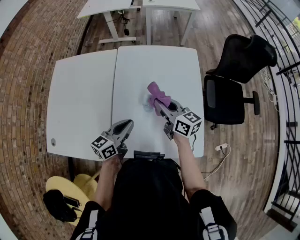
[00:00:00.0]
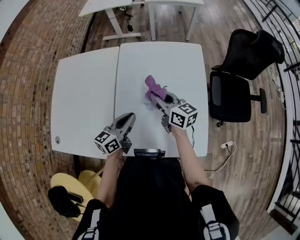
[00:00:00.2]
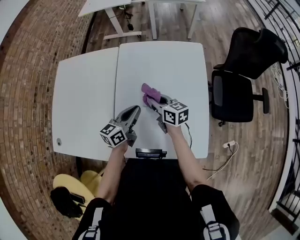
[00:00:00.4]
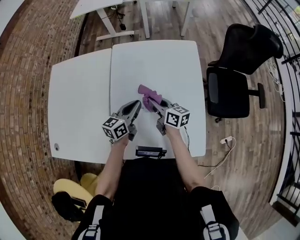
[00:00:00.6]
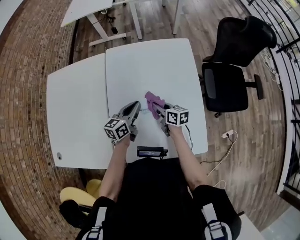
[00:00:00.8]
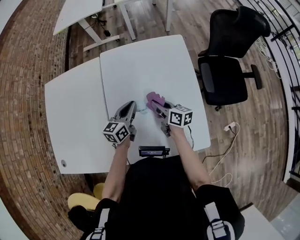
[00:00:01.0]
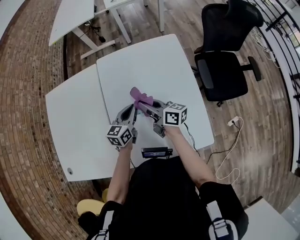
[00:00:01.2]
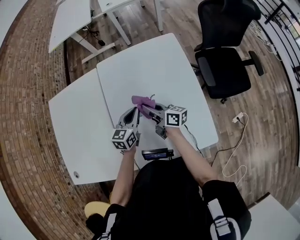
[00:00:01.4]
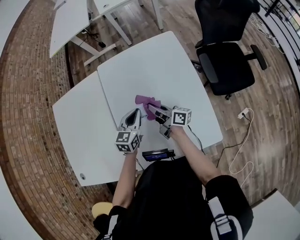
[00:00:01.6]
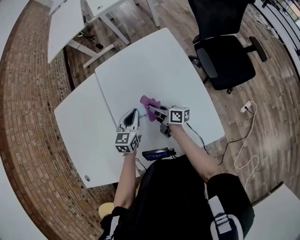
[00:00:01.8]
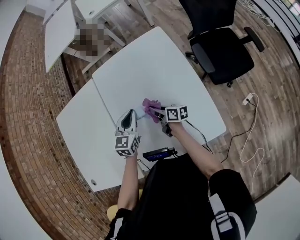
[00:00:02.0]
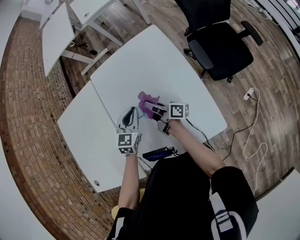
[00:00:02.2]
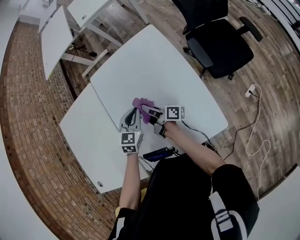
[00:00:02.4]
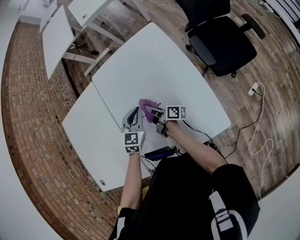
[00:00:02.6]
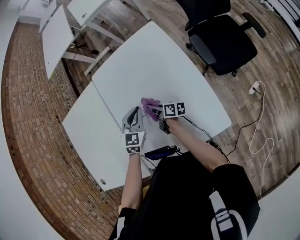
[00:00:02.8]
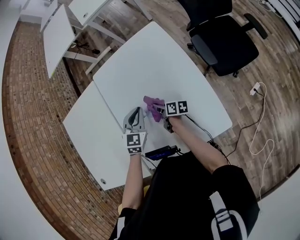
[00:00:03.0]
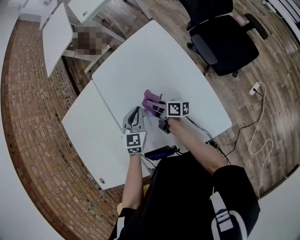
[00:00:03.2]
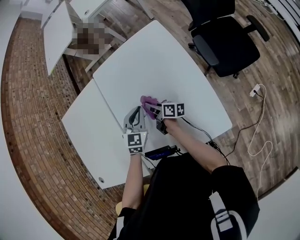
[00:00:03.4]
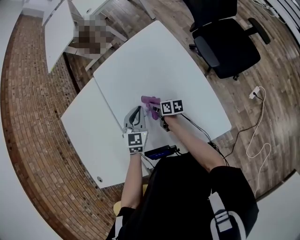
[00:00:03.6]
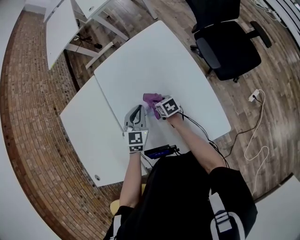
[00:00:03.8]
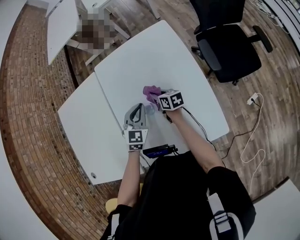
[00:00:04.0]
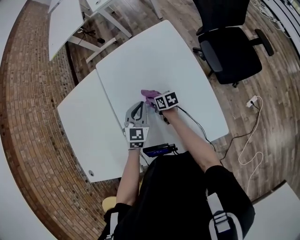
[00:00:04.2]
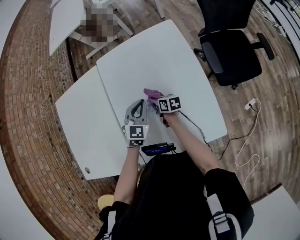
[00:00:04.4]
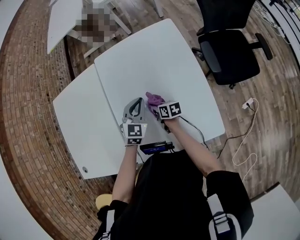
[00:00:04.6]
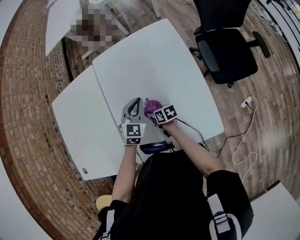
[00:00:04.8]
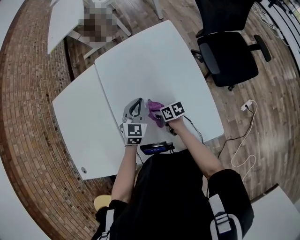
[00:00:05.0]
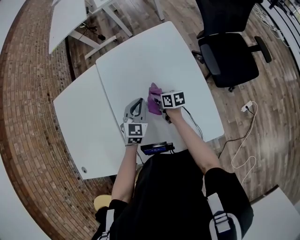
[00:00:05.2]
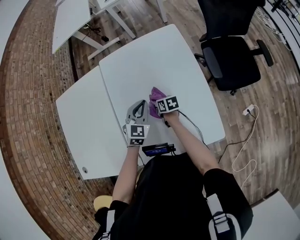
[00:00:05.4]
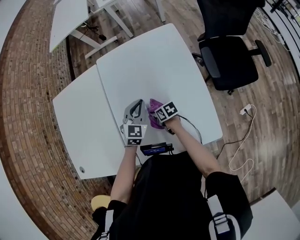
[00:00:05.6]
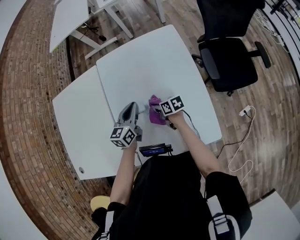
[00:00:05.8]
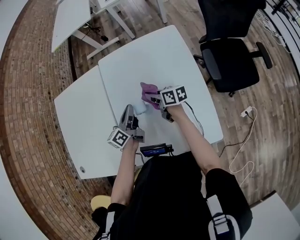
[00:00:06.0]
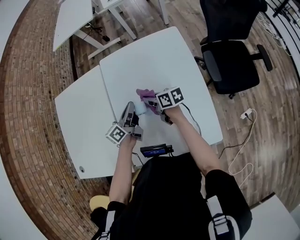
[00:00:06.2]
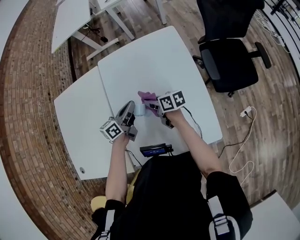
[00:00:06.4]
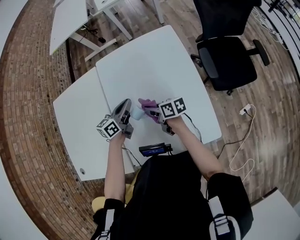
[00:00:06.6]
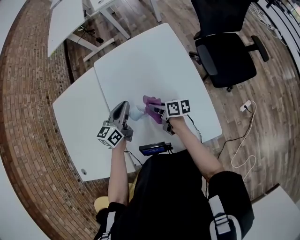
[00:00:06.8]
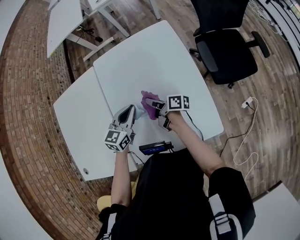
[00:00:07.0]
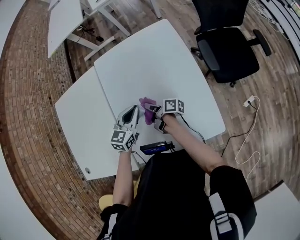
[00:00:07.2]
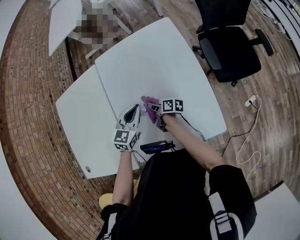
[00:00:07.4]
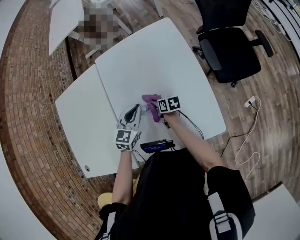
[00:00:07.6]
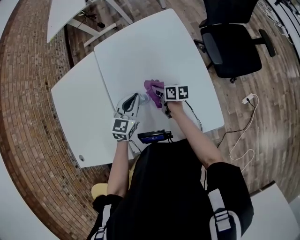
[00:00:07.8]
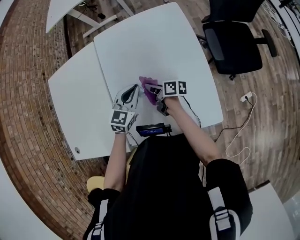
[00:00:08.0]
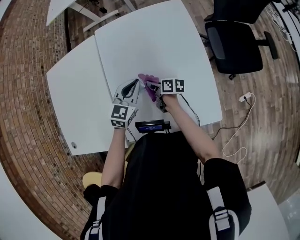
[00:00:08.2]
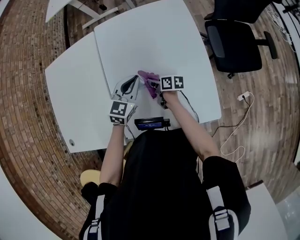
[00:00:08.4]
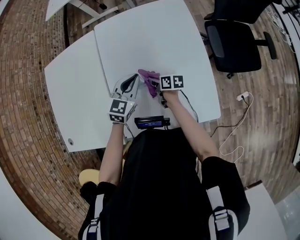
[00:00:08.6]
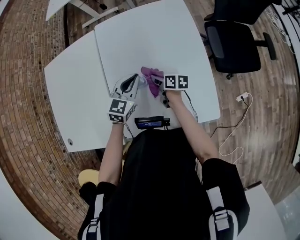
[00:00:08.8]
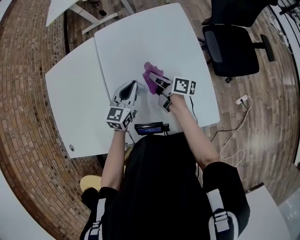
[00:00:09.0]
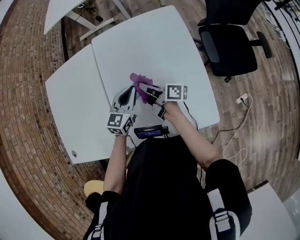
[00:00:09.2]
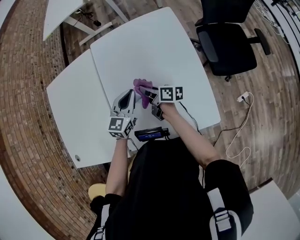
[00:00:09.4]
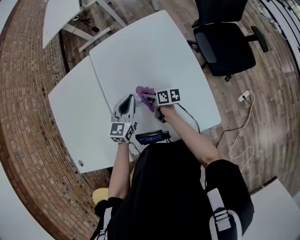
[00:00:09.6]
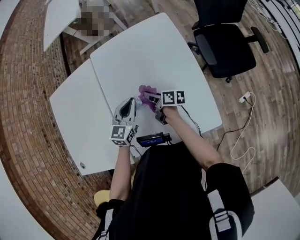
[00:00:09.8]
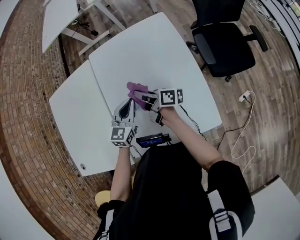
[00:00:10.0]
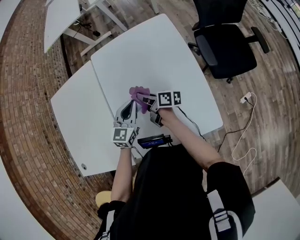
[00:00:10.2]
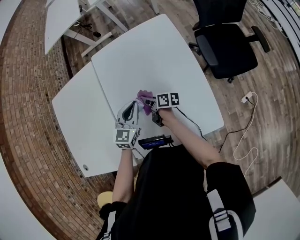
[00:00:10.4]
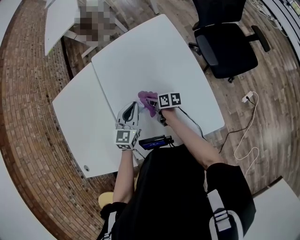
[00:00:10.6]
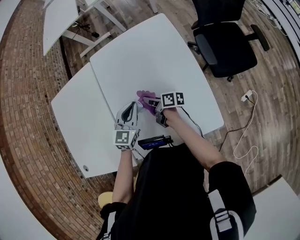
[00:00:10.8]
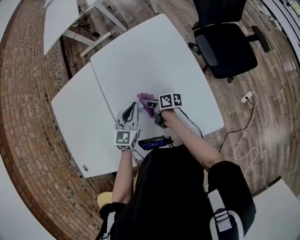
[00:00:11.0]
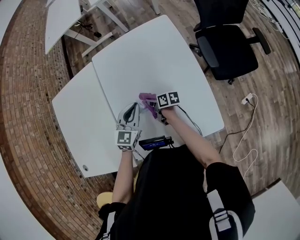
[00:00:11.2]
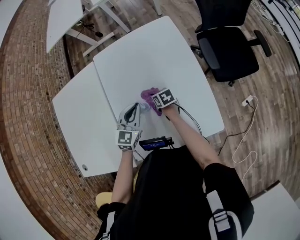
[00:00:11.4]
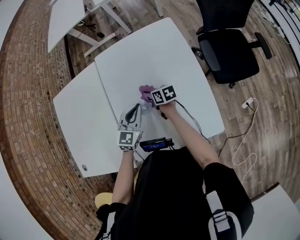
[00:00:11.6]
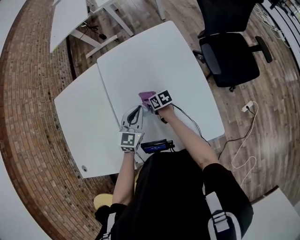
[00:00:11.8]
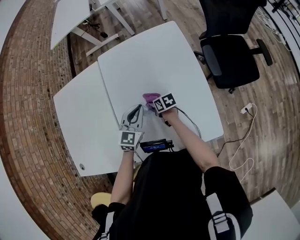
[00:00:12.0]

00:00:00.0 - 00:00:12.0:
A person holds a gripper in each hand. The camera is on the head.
00:00:00.0 - 00:00:01.6: The right gripper goes up and down, roughly 15 cm each way, reversing 2 times, and turns by roughly 40 degrees. Meanwhile the left gripper shifts about 15 cm forward, to the right and downward, and swivels some 30 degrees.
00:00:01.6 - 00:00:03.0: The right gripper goes up and down, about 15 cm each way, reversing 2 times, and swivels roughly 30 degrees; the left gripper turns by about 20 degrees.
00:00:03.0 - 00:00:04.4: The right gripper goes up and down, roughly 10 cm each way, reversing 2 times, and changes its angle by about 20 degrees.
00:00:04.4 - 00:00:06.0: The left gripper goes some 5 cm to the left, and twists some 70 degrees counterclockwise, seen from behind. The right gripper heads upward, covering roughly 10 cm.
00:00:06.0 - 00:00:07.6: The right gripper is displaced downward and backward by approximately 15 cm, and turns by approximately 20 degrees. Meanwhile the left gripper travels to the right by some 5 cm, and twists about 50 degrees clockwise, seen from behind.
00:00:07.6 - 00:00:09.0: The right gripper swings up and down, about 15 cm each way, with 2 reversals, and rotates roughly 40 degrees.
00:00:09.0 - 00:00:10.4: The right gripper goes up and down, about 10 cm each way, reversing 2 times.
00:00:10.4 - 00:00:12.0: The right gripper moves up and down over roughly 5 cm, changing direction 2 times, and turns by about 40 degrees.

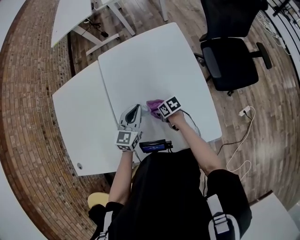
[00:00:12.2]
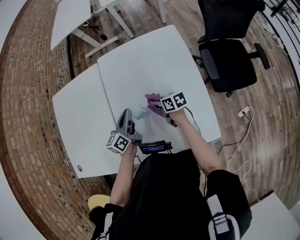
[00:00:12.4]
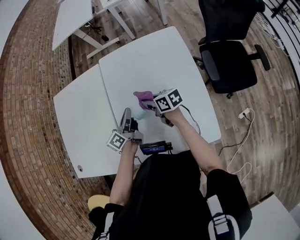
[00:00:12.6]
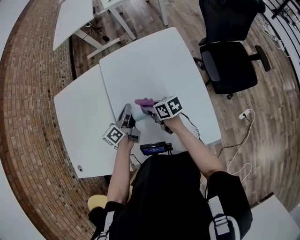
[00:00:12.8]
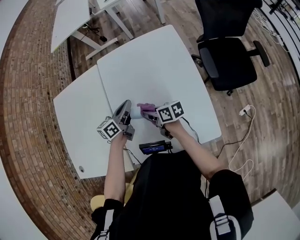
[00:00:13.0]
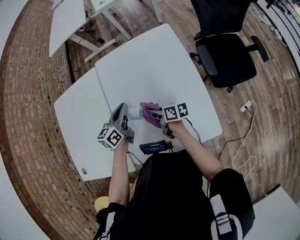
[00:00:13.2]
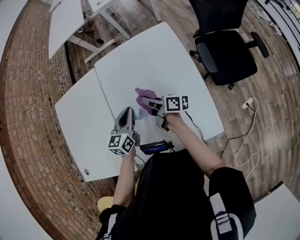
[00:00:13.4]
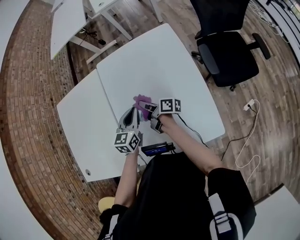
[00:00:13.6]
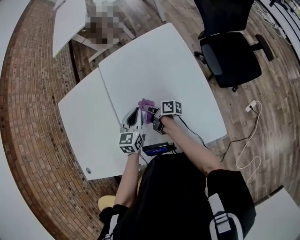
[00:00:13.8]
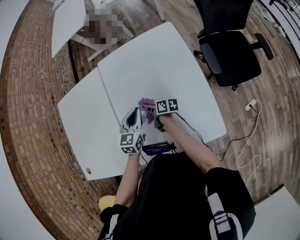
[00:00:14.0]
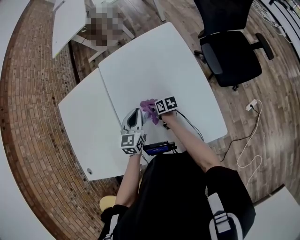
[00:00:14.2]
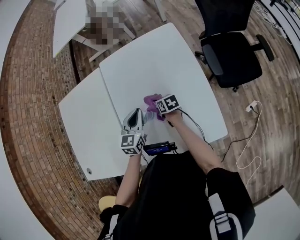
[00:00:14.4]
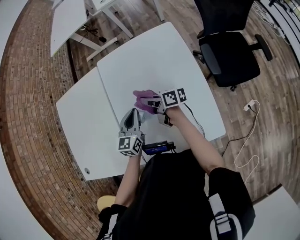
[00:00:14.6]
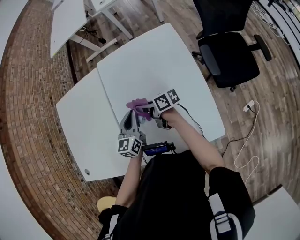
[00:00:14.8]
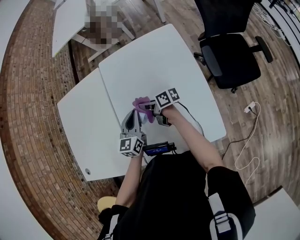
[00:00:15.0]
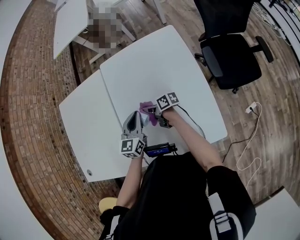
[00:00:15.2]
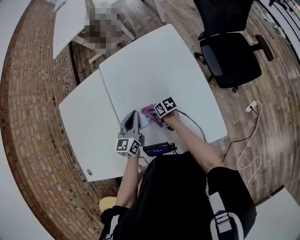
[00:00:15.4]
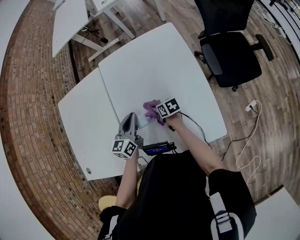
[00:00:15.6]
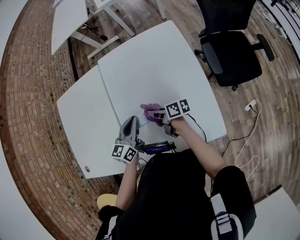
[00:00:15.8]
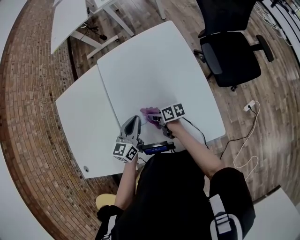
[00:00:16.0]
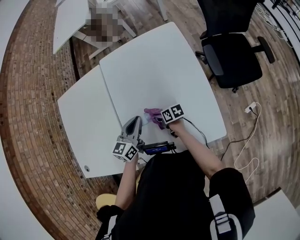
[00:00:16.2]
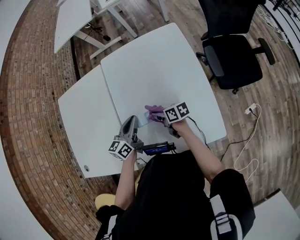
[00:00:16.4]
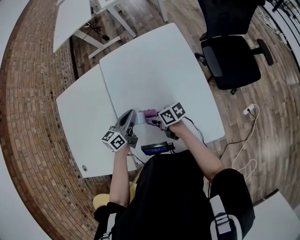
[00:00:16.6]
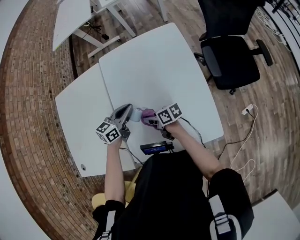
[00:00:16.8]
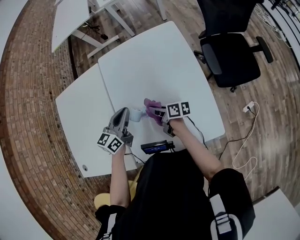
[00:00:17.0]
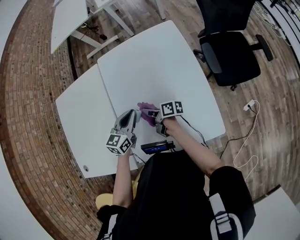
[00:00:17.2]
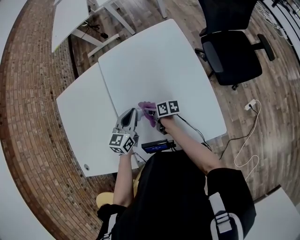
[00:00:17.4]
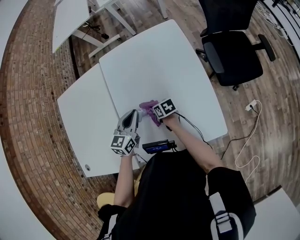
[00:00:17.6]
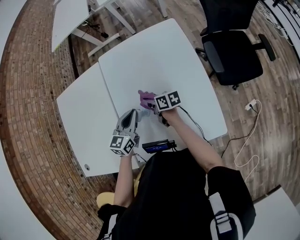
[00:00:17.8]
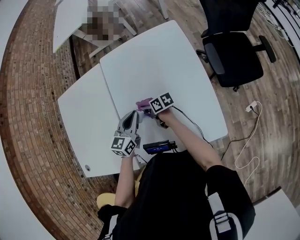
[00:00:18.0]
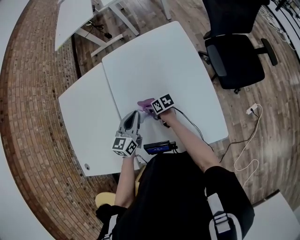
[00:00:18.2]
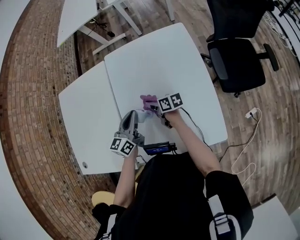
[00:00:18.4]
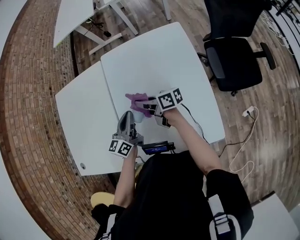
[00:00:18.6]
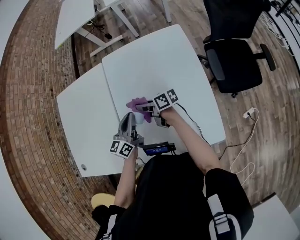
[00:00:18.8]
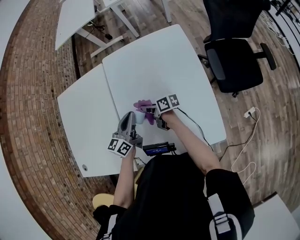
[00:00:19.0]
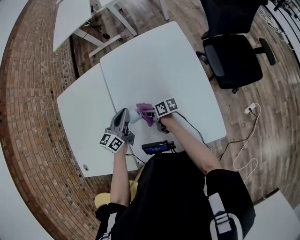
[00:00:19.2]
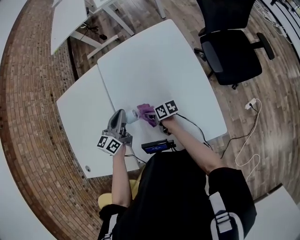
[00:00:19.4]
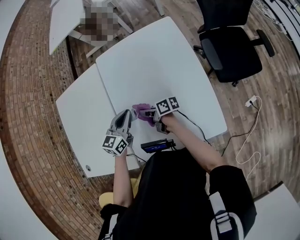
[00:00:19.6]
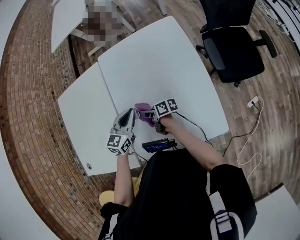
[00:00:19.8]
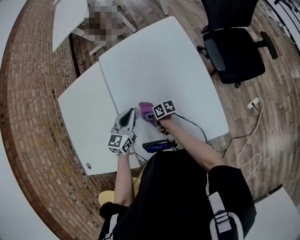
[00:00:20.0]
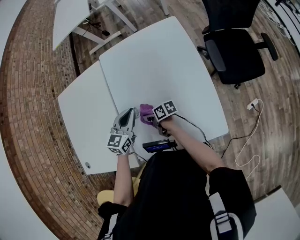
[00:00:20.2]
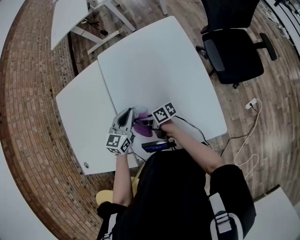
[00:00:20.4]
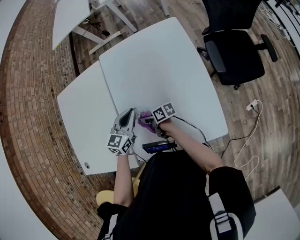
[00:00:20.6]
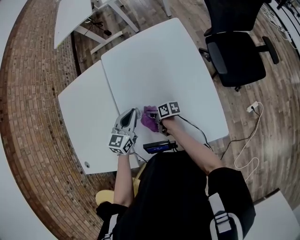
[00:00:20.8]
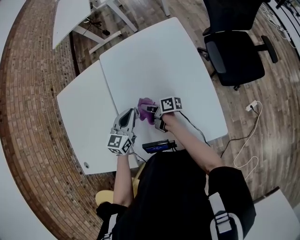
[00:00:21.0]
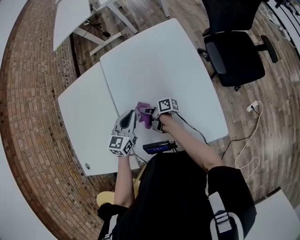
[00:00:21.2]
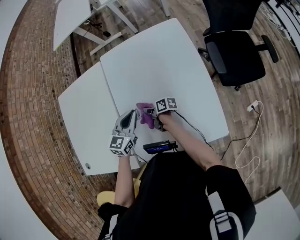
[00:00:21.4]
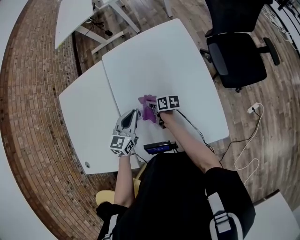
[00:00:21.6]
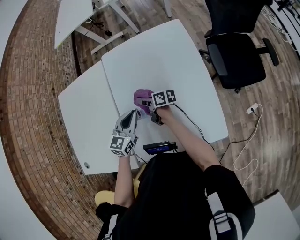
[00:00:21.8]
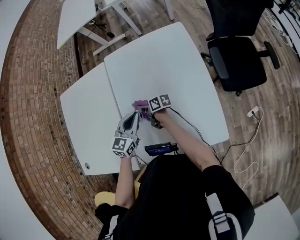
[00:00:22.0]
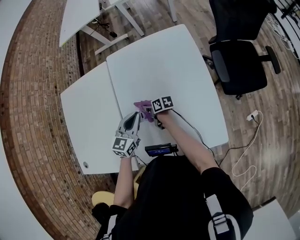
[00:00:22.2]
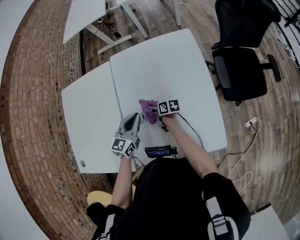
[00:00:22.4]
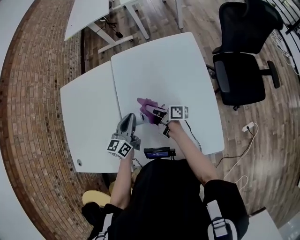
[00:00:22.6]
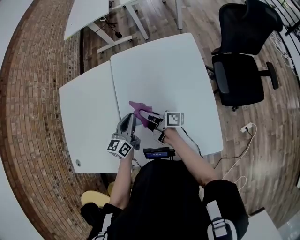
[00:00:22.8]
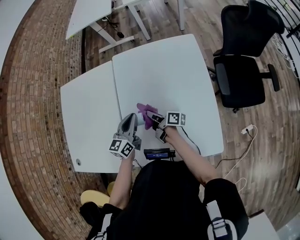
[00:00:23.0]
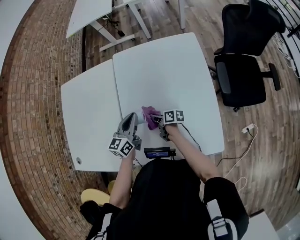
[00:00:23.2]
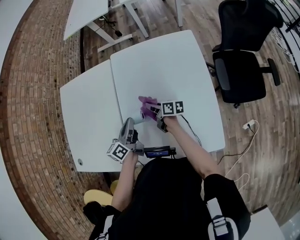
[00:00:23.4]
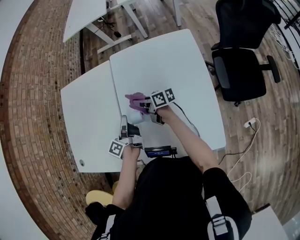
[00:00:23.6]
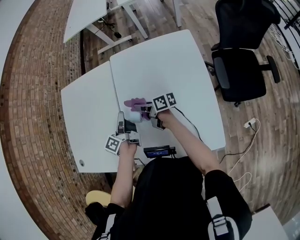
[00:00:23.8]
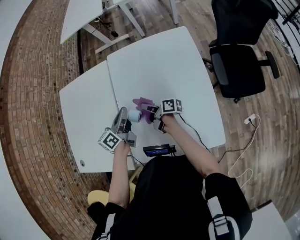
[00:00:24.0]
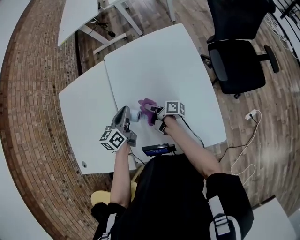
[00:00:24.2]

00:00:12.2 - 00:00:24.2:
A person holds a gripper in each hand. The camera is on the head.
00:00:12.2 - 00:00:13.8: The right gripper travels upward and forward by about 10 cm, and angles its fingers upward, by roughly 30 degrees.
00:00:13.8 - 00:00:15.2: The right gripper swings up and down, some 15 cm each way, with 2 reversals, and turns by about 30 degrees.
00:00:15.2 - 00:00:16.6: The left gripper rotates about 30 degrees, while the right gripper swings up and down, about 10 cm each way, with 3 reversals.
00:00:16.6 - 00:00:18.2: The right gripper swings up and down, approximately 10 cm each way, with 2 reversals. The left gripper turns by approximately 20 degrees.
00:00:18.2 - 00:00:19.8: The right gripper moves up and down over about 15 cm, changing direction 2 times, and rotates approximately 30 degrees.
00:00:19.8 - 00:00:21.2: The right gripper moves up and down over about 10 cm, changing direction 3 times.
00:00:21.2 - 00:00:22.6: The left gripper turns by approximately 20 degrees. Meanwhile the right gripper swings up and down, approximately 15 cm each way, with 3 reversals.
00:00:22.6 - 00:00:24.2: The right gripper goes up and down, approximately 15 cm each way, reversing 3 times.
